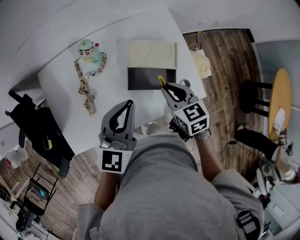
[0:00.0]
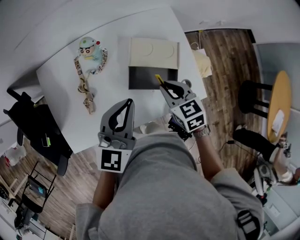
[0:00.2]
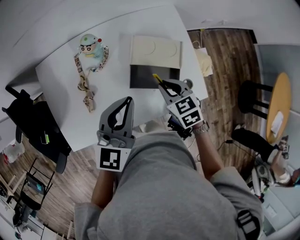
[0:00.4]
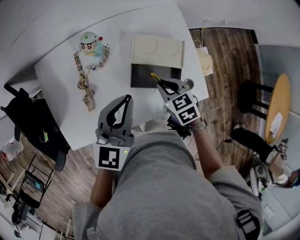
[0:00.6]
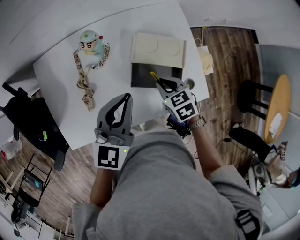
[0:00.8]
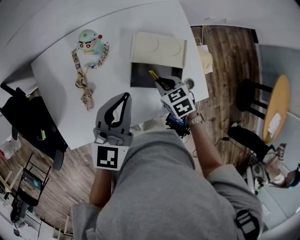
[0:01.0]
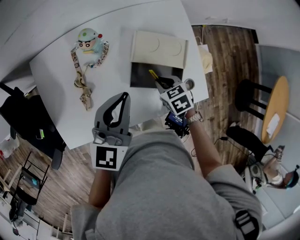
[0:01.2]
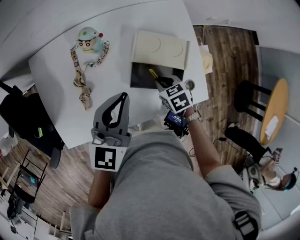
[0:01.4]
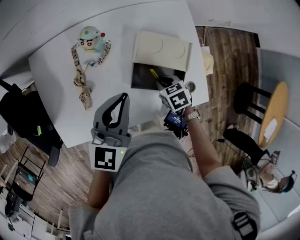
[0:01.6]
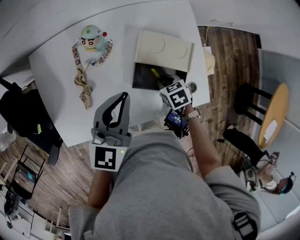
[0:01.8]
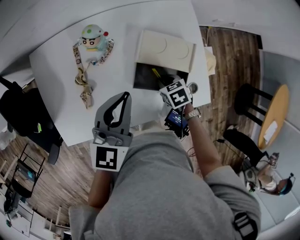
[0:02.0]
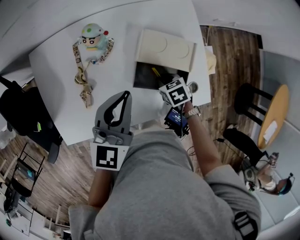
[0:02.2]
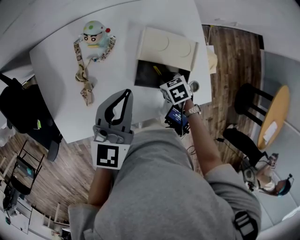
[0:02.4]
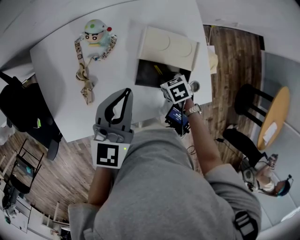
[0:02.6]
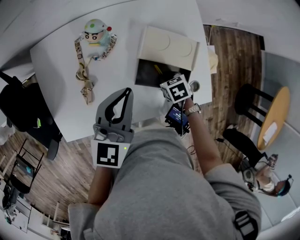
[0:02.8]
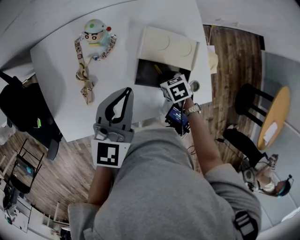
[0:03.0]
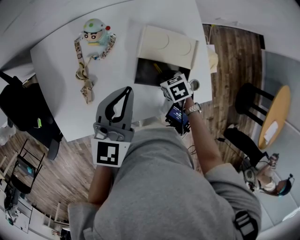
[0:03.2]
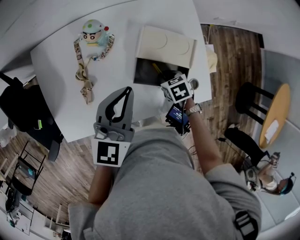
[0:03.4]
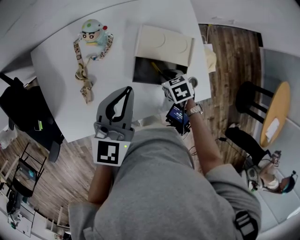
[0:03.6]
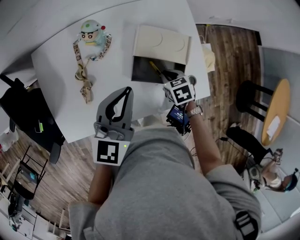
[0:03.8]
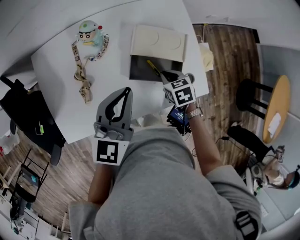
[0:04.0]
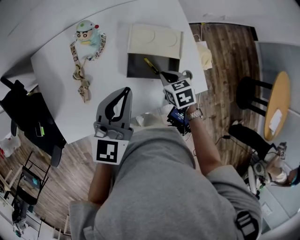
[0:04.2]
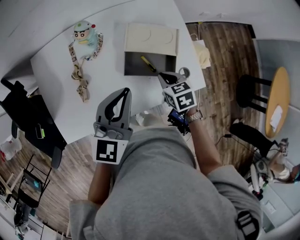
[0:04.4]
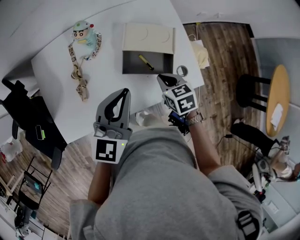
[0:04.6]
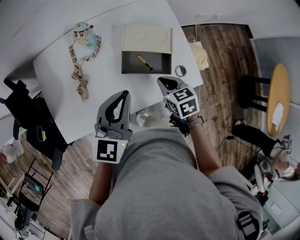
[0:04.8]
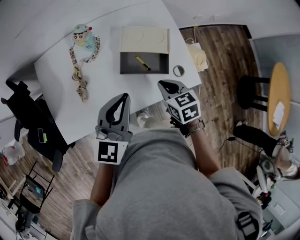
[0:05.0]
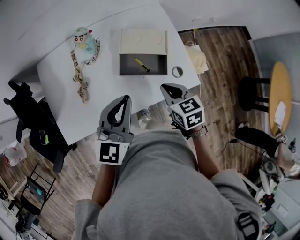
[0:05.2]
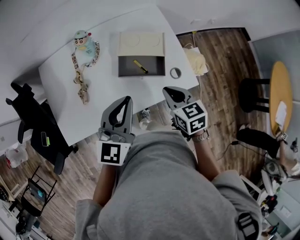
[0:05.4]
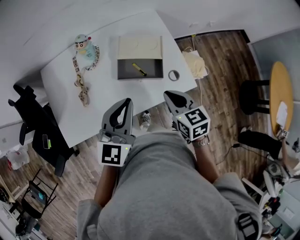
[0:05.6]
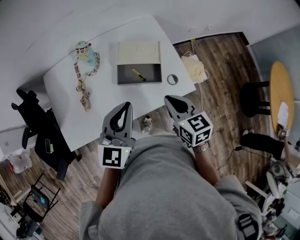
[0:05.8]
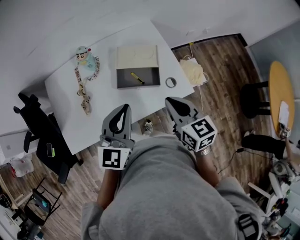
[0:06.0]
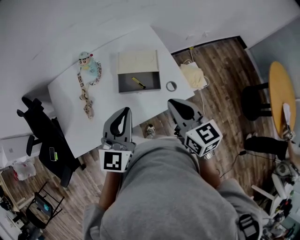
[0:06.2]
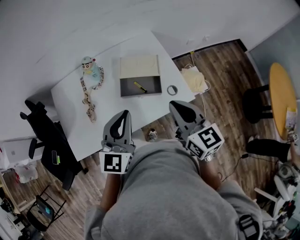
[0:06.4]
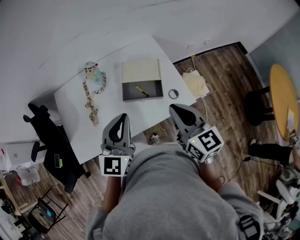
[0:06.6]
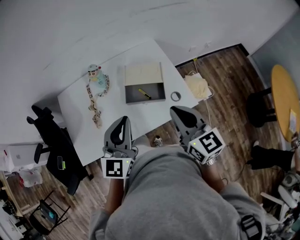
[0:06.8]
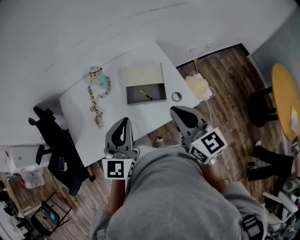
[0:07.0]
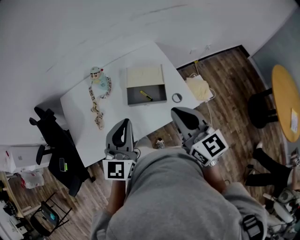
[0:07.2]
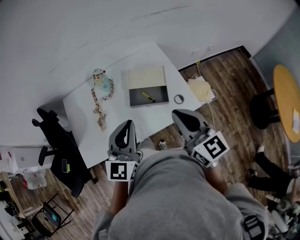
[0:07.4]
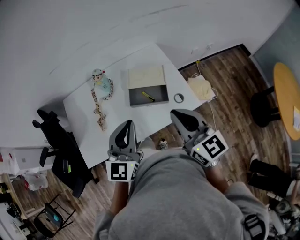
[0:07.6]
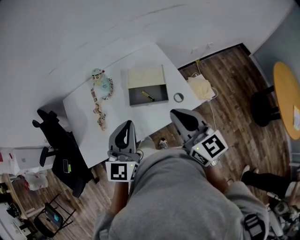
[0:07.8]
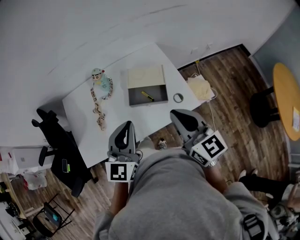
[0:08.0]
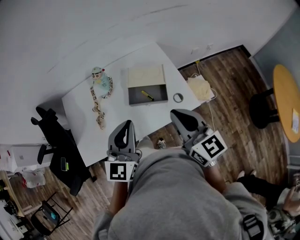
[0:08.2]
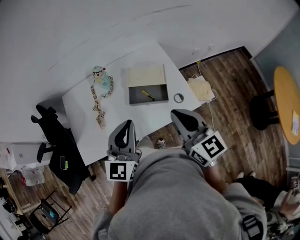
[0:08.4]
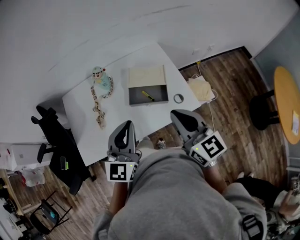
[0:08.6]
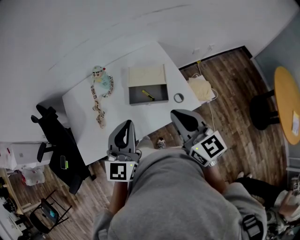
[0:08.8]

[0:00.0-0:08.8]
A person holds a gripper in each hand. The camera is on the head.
0:00.0 to 0:01.4: The right gripper moves downward, about 15 cm, and rotates about 20 degrees. The left gripper is displaced forward by about 5 cm.
0:01.4 to 0:03.0: The right gripper moves downward, roughly 5 cm.
0:03.0 to 0:04.4: The right gripper travels upward by roughly 10 cm. Meanwhile the left gripper travels backward by some 5 cm.
0:04.4 to 0:05.8: The right gripper shifts about 20 cm upward and backward, and rotates approximately 30 degrees; the left gripper shifts approximately 10 cm backward.
0:05.8 to 0:07.4: The right gripper shifts roughly 15 cm upward, and changes its angle by approximately 30 degrees; the left gripper moves about 5 cm.
0:07.4 to 0:08.8: The two grippers keep their place.

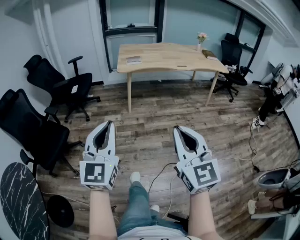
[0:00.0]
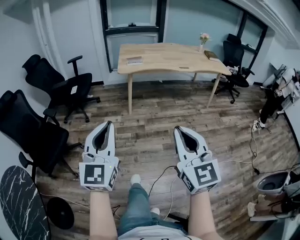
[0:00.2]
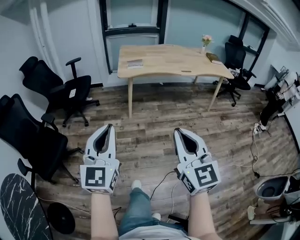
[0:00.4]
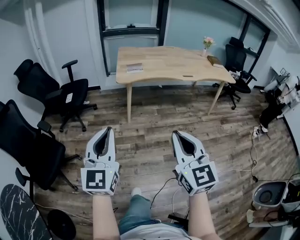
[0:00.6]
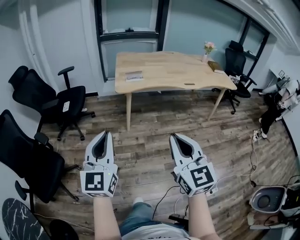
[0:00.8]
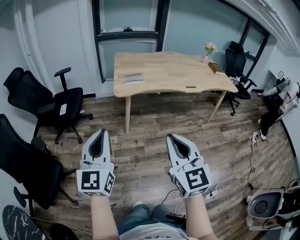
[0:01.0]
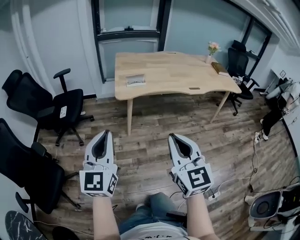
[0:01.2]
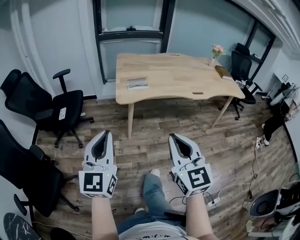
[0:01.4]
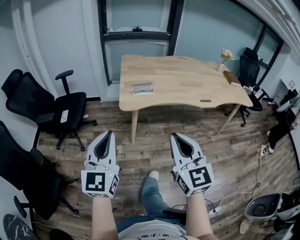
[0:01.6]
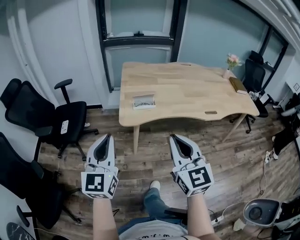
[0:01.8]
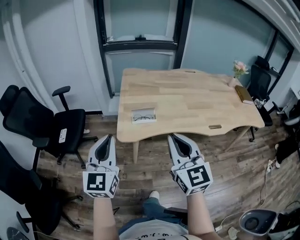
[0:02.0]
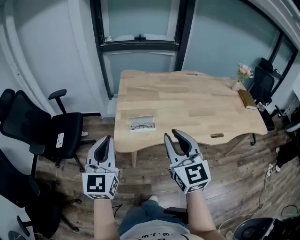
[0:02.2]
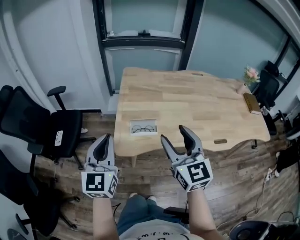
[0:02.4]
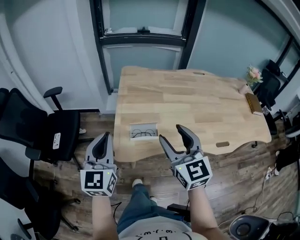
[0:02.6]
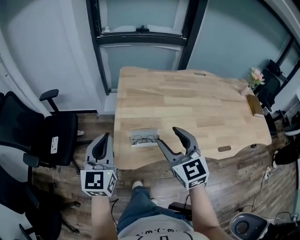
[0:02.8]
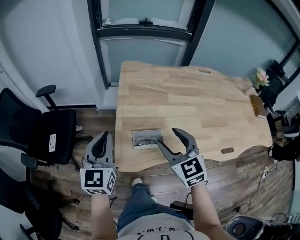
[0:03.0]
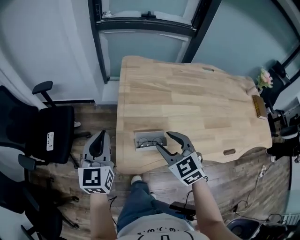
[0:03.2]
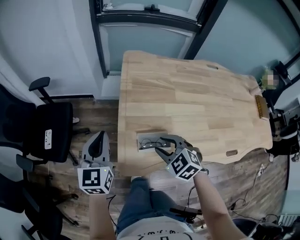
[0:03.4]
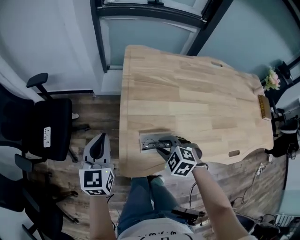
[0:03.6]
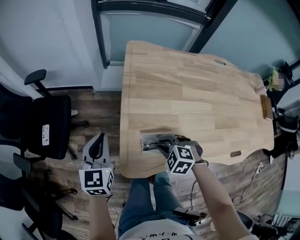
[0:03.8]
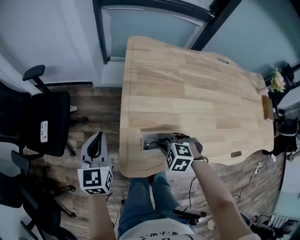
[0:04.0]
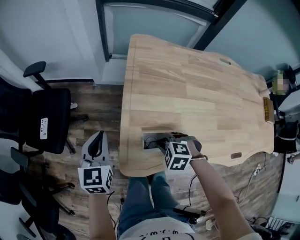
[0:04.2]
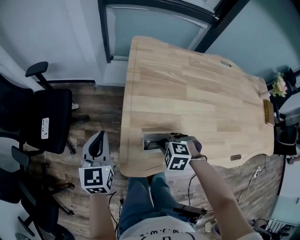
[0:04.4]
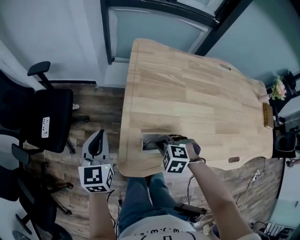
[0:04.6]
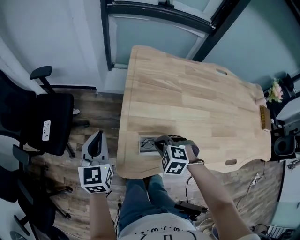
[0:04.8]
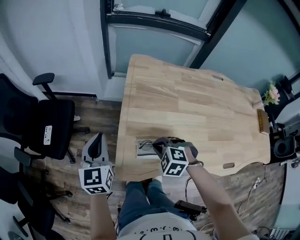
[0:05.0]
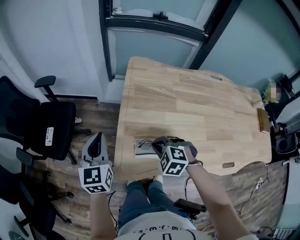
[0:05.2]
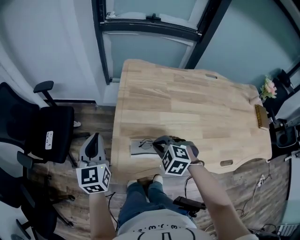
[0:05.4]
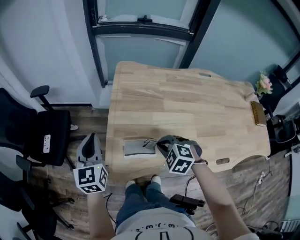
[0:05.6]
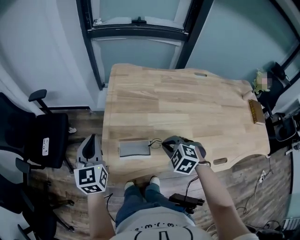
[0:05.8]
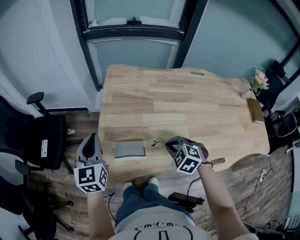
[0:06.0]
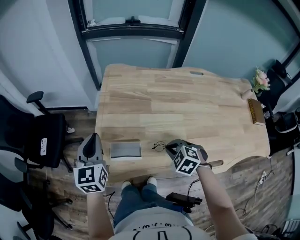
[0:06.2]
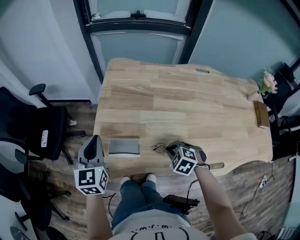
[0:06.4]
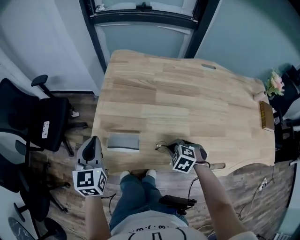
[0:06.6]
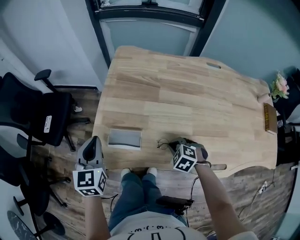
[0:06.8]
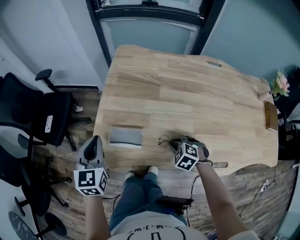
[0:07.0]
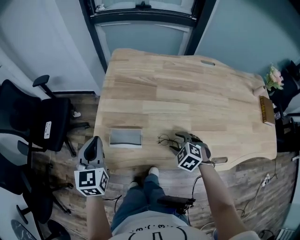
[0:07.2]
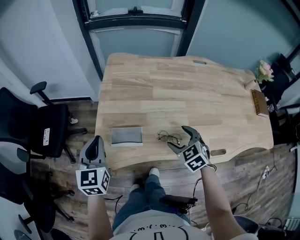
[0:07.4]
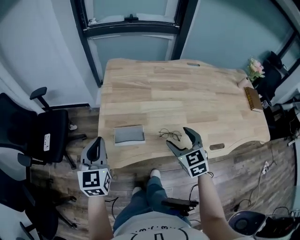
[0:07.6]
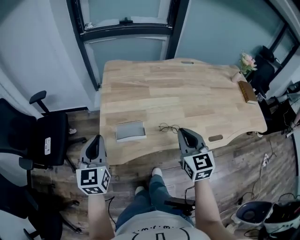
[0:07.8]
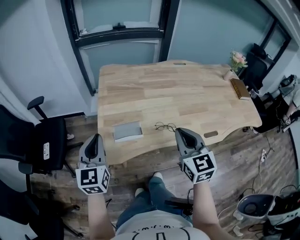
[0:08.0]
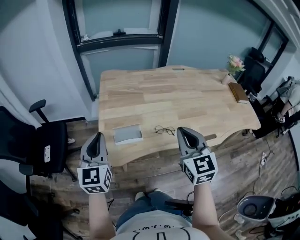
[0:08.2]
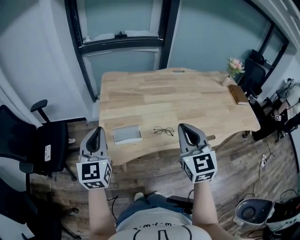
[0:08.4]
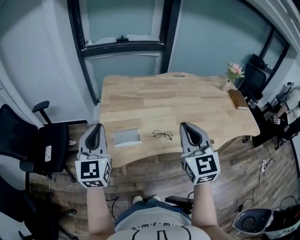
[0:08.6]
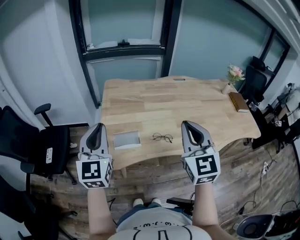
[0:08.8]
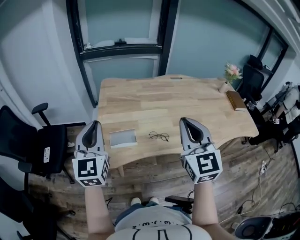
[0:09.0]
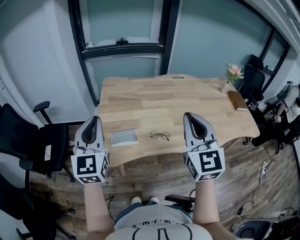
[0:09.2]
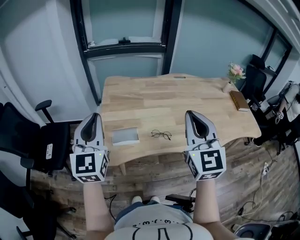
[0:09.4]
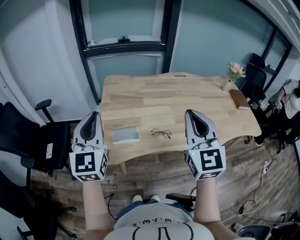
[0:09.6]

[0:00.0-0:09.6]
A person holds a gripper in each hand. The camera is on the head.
0:00.0 to 0:01.6: The two grippers travel together, forward, roughly 50 cm.
0:01.6 to 0:03.2: The two grippers travel together, forward, about 50 cm. The right gripper points its fingers approximately 30 degrees further downward, and opens its fingers.
0:03.2 to 0:04.8: The left gripper shifts approximately 5 cm downward. The right gripper is displaced downward by some 15 cm, points its fingers roughly 30 degrees further downward, and closes its fingers.
0:04.8 to 0:06.4: Both grippers move to the right and backward, roughly 20 cm.
0:06.4 to 0:08.0: The left gripper ends up approximately 10 cm from where it was; the right gripper moves upward, some 25 cm, angles its fingers upward, by approximately 50 degrees, and opens and closes again.
0:08.0 to 0:09.6: The two grippers go approximately 15 cm upward. The right gripper changes its angle by some 20 degrees.

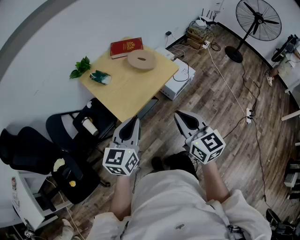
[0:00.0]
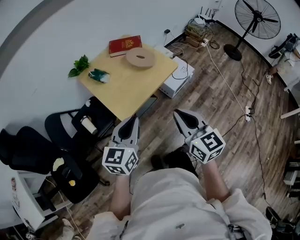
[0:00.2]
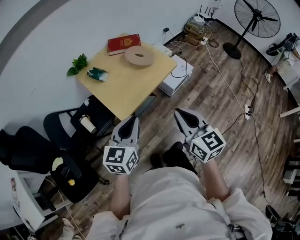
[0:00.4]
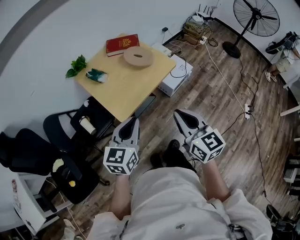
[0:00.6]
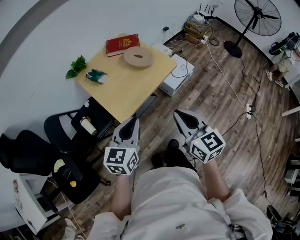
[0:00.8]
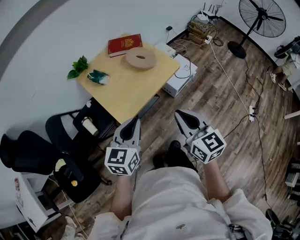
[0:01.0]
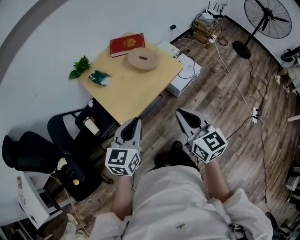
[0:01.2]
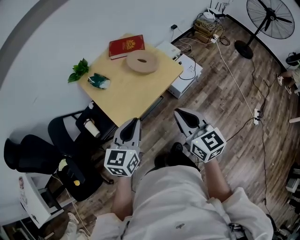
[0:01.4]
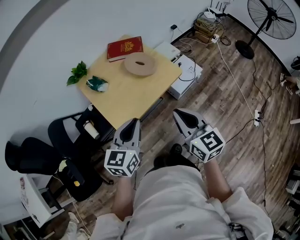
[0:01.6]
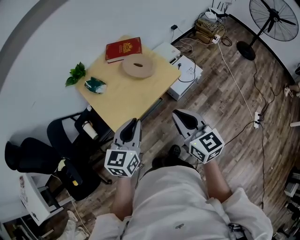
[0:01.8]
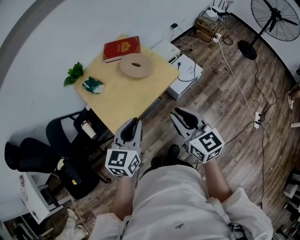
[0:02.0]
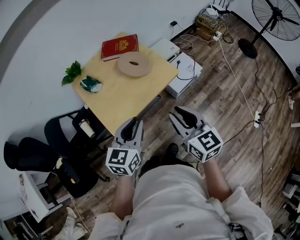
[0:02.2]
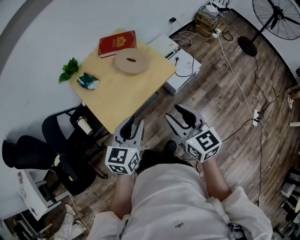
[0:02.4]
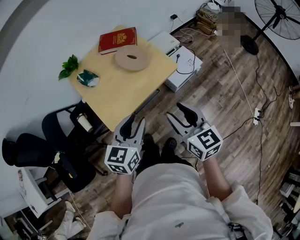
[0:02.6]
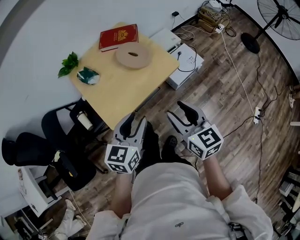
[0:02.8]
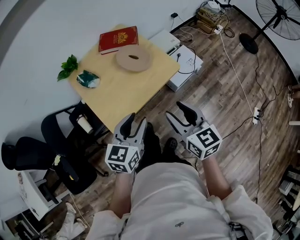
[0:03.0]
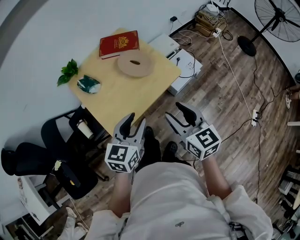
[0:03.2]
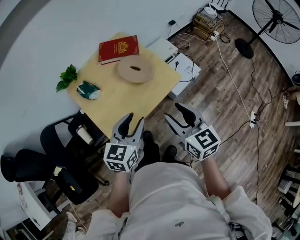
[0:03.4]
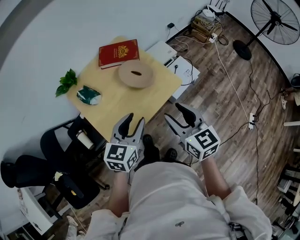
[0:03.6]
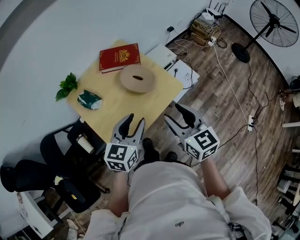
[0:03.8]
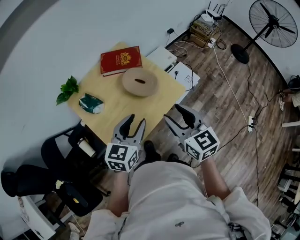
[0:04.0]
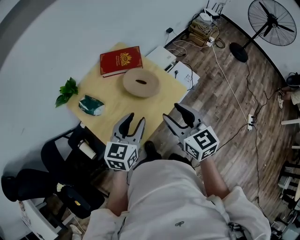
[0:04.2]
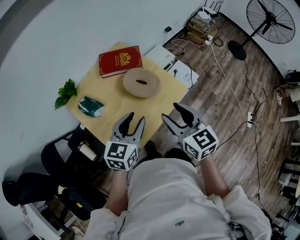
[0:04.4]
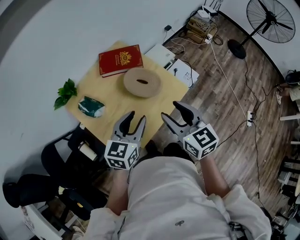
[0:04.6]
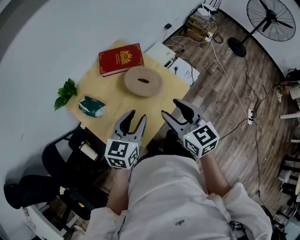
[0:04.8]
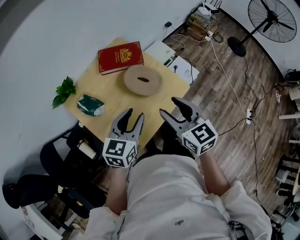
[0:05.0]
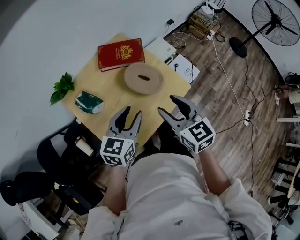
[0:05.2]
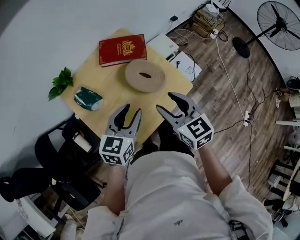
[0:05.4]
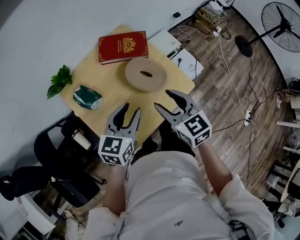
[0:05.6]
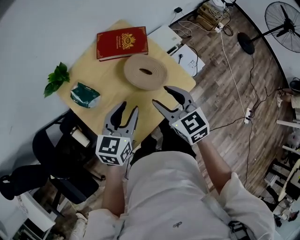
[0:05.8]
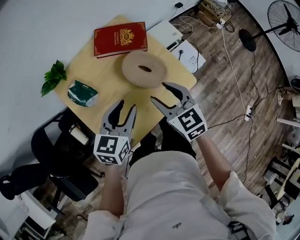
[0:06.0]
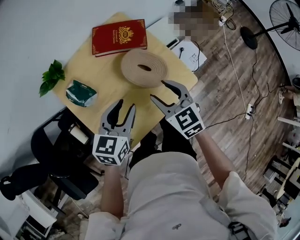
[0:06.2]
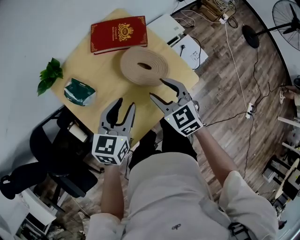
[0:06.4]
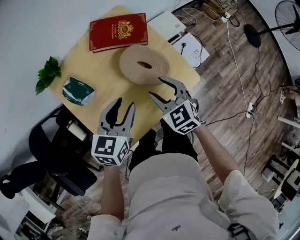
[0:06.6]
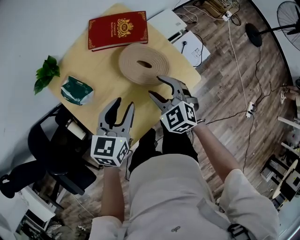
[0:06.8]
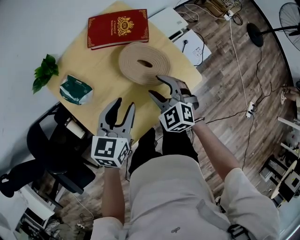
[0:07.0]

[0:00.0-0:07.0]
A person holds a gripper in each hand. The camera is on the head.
0:00.0 to 0:01.4: The grippers both shift forward by approximately 10 cm.
0:01.4 to 0:02.8: The left gripper heads to the right and forward, covering about 10 cm, and opens up, while the right gripper travels to the right, forward and downward by approximately 10 cm, and opens its fingers.
0:02.8 to 0:04.2: Both grippers travel together forward and to the left, roughly 20 cm.
0:04.2 to 0:05.6: The right gripper is displaced forward, downward and to the left by roughly 10 cm. The left gripper heads forward, covering about 5 cm.
0:05.6 to 0:07.0: The left gripper moves downward, some 5 cm; the right gripper travels downward by about 15 cm, and turns by about 30 degrees.
